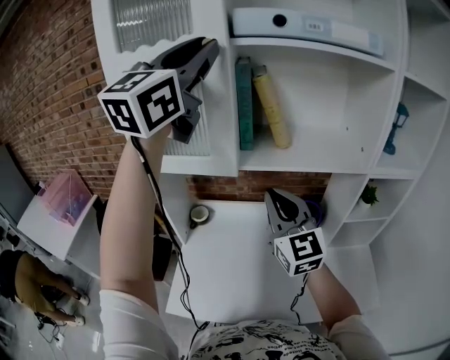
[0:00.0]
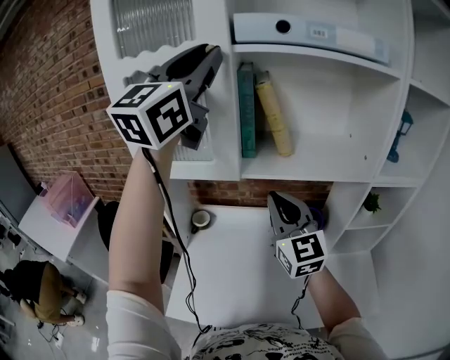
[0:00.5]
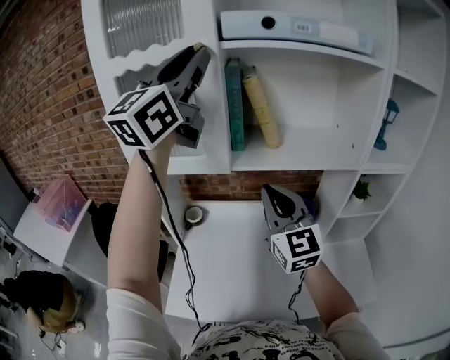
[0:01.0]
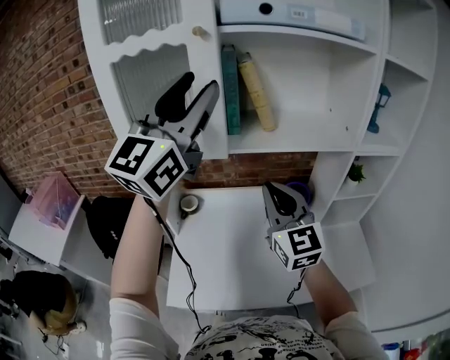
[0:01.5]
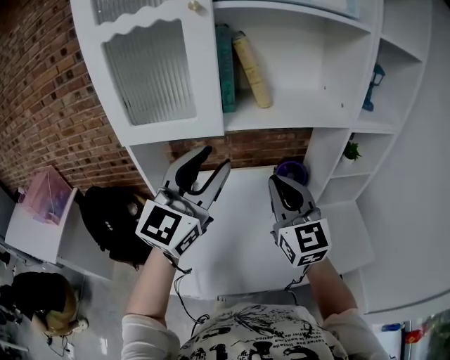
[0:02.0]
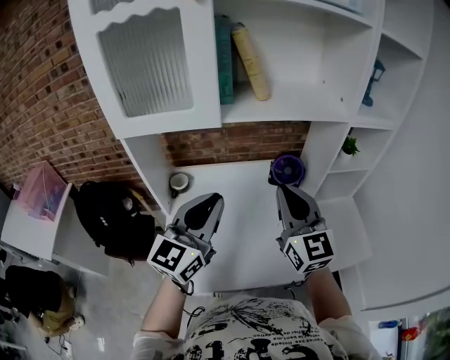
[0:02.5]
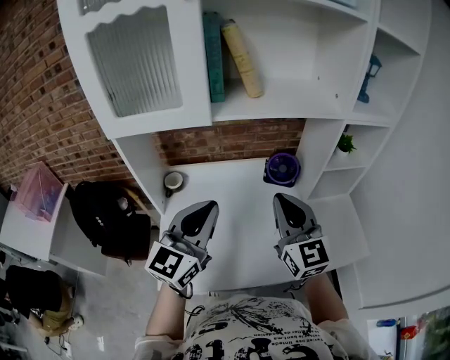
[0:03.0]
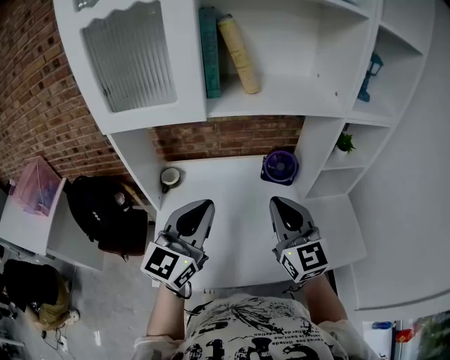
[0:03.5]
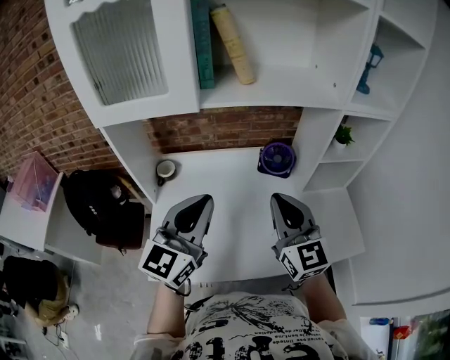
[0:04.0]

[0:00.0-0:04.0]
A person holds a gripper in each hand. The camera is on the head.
0.0 to 2.0 s: The left gripper shifts approximately 30 cm downward. The right gripper travels backward by approximately 5 cm.
2.0 to 4.0 s: The right gripper is displaced downward and to the right by about 10 cm. Meanwhile the left gripper goes roughly 15 cm downward, and closes.

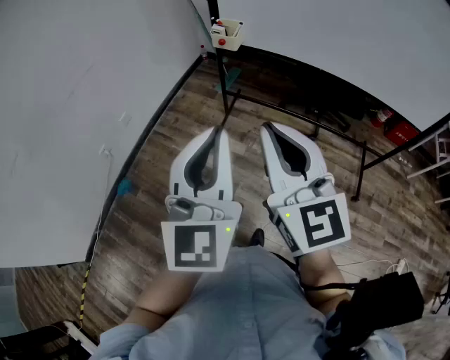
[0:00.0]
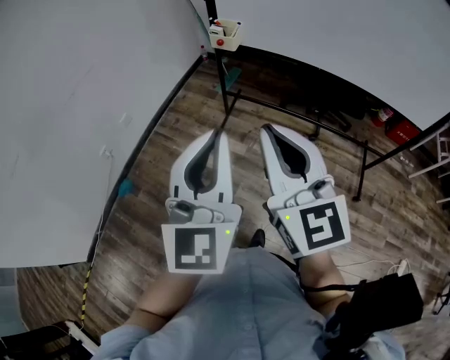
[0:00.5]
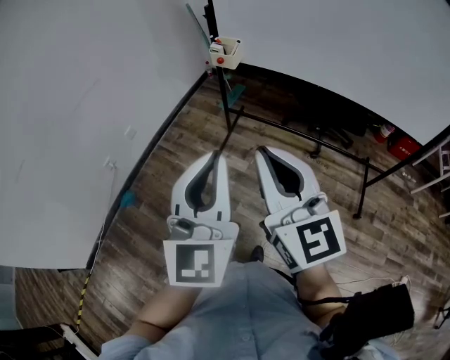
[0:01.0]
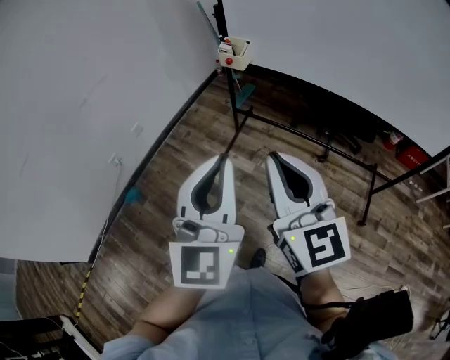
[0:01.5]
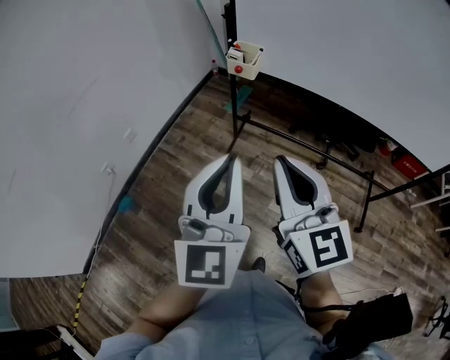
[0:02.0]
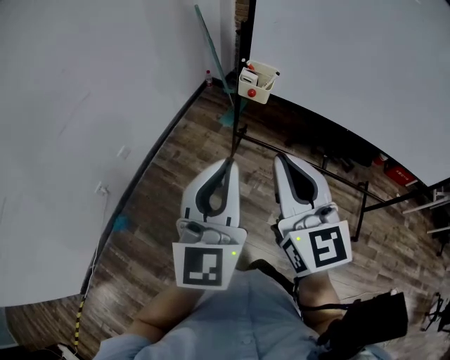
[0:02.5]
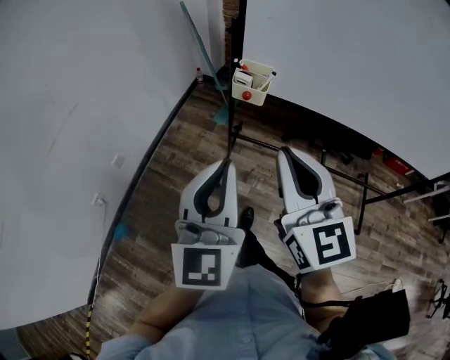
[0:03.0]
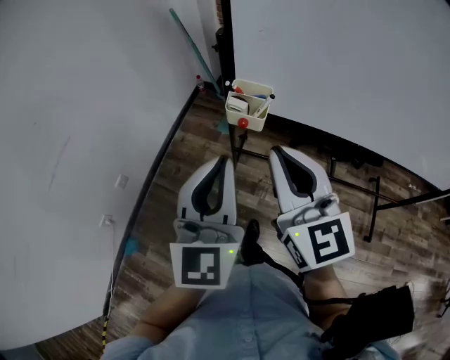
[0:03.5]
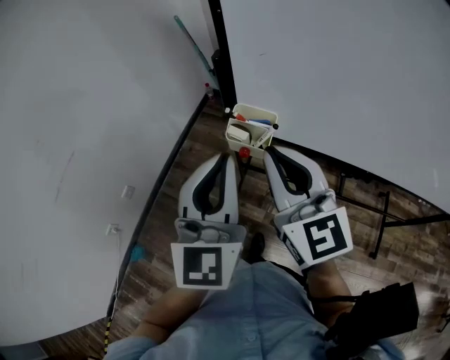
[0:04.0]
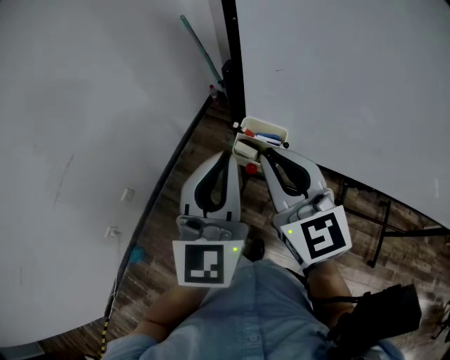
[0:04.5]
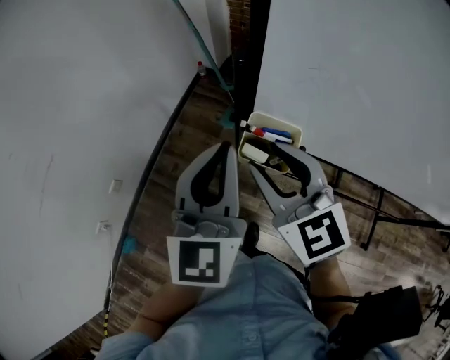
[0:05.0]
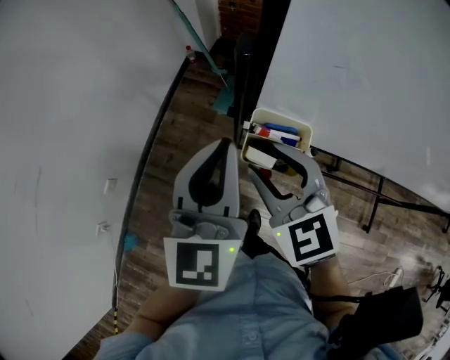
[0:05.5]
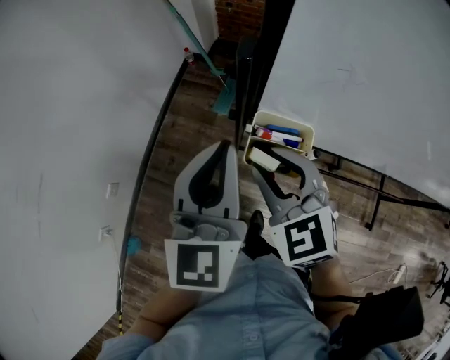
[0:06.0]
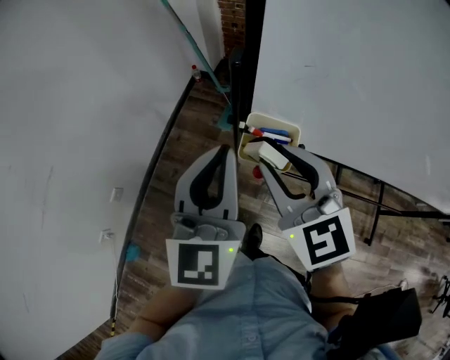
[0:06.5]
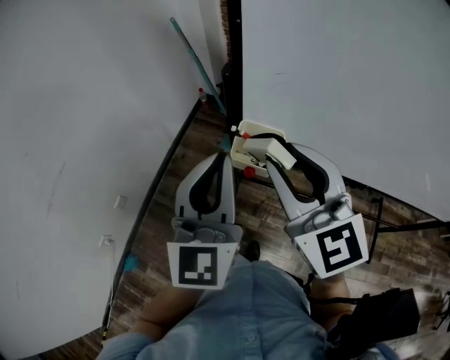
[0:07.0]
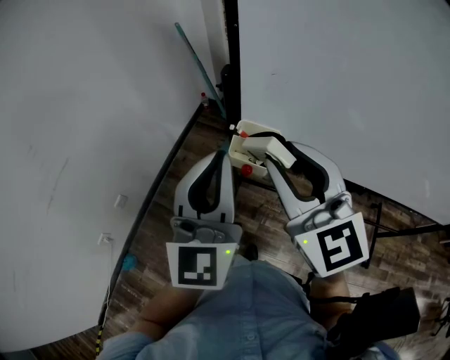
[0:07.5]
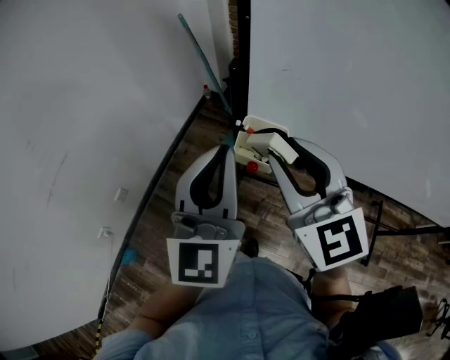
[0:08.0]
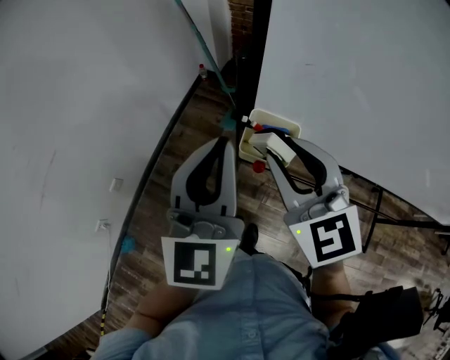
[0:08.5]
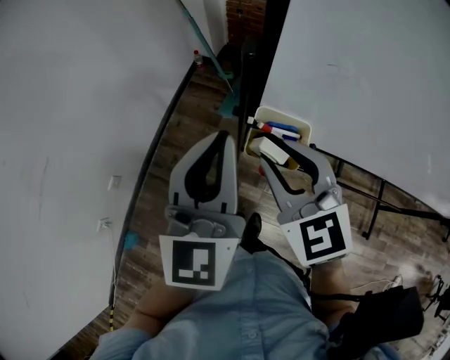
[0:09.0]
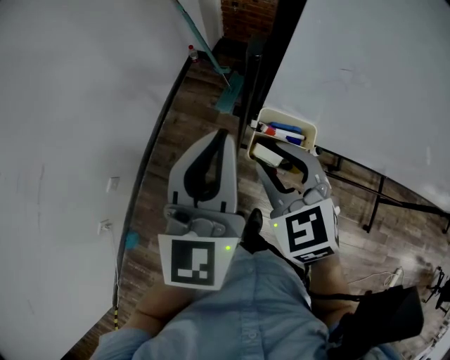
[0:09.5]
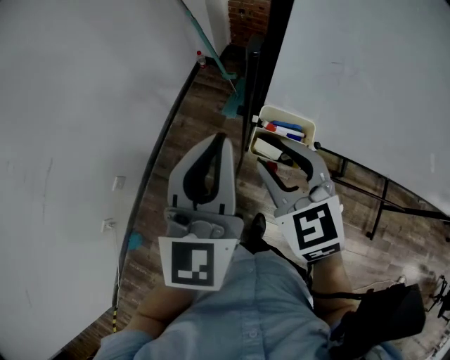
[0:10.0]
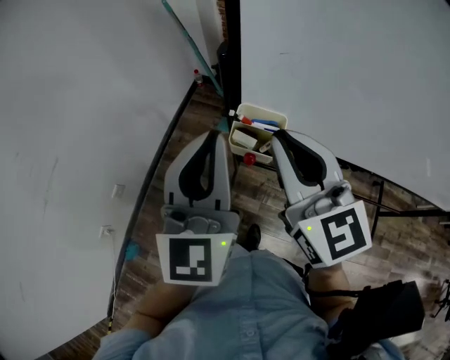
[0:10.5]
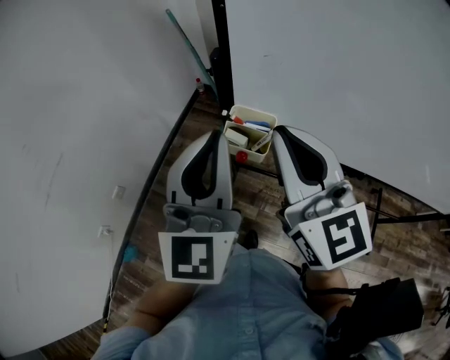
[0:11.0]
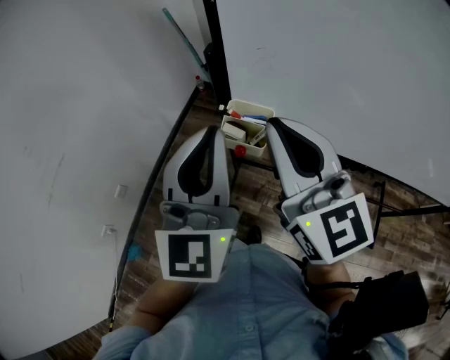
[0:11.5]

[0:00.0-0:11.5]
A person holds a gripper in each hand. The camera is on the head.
0.0 to 2.0 s: Both grippers move forward, roughly 10 cm.
2.0 to 4.0 s: Both grippers move forward, some 35 cm.
4.0 to 6.0 s: The right gripper is displaced downward and forward by some 20 cm, points its fingers approximately 30 degrees further downward, and opens; the left gripper heads forward and downward, covering approximately 15 cm.
6.0 to 7.5 s: The right gripper heads upward and backward, covering roughly 20 cm, and swivels approximately 30 degrees, while the left gripper is displaced backward and upward by about 15 cm.
7.5 to 9.5 s: The right gripper shifts about 20 cm downward and forward, and angles its fingers downward, by roughly 30 degrees. The left gripper goes some 15 cm forward and downward.
9.5 to 11.5 s: The left gripper is displaced backward and upward by about 15 cm. The right gripper goes some 20 cm upward and backward, angles its fingers upward, by some 40 degrees, and closes.

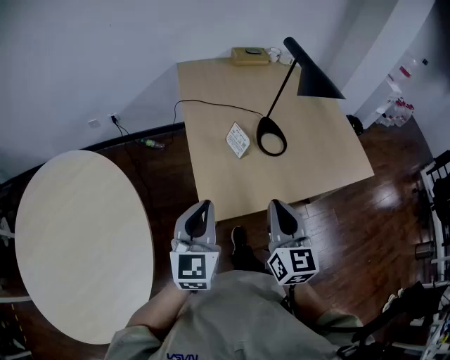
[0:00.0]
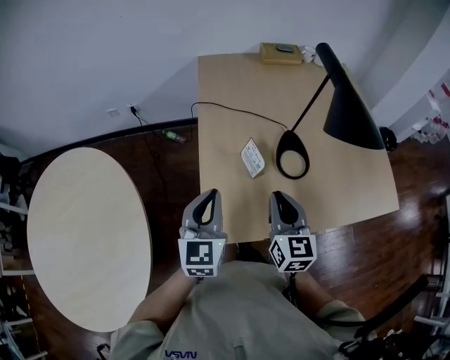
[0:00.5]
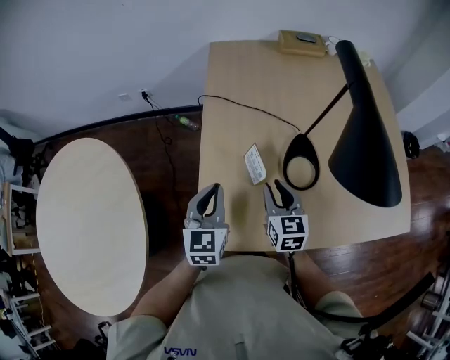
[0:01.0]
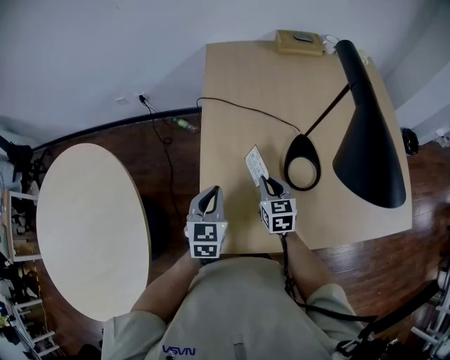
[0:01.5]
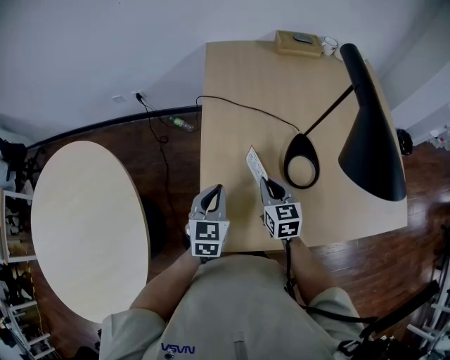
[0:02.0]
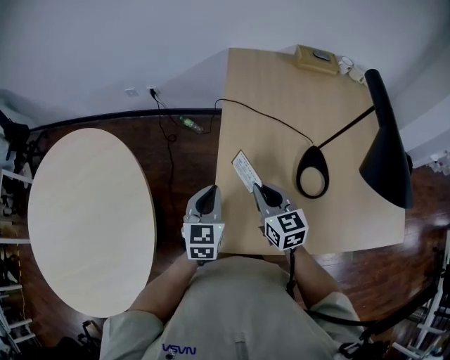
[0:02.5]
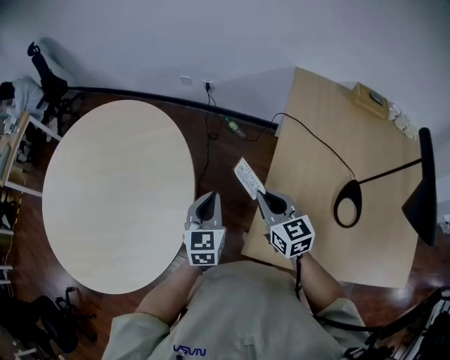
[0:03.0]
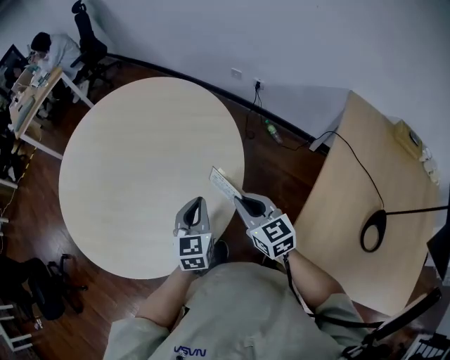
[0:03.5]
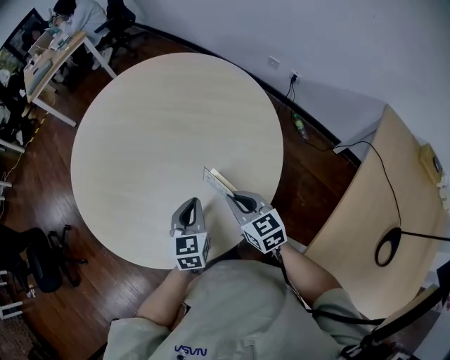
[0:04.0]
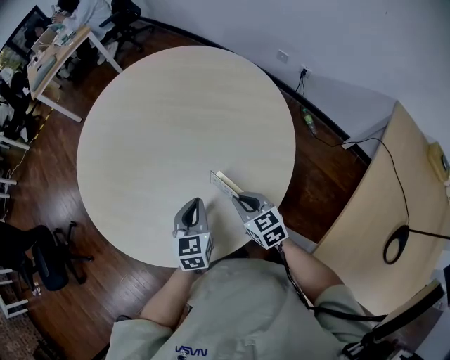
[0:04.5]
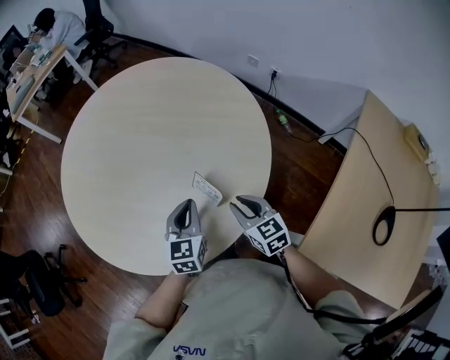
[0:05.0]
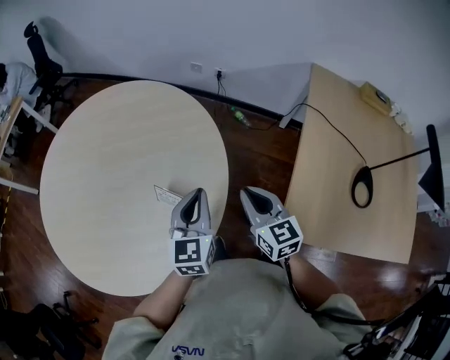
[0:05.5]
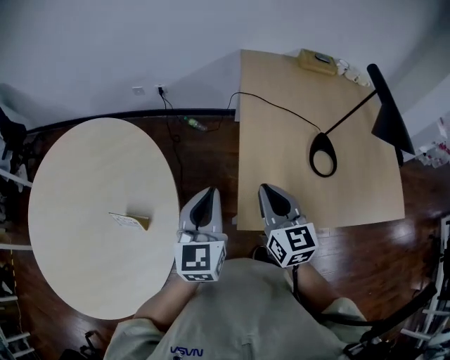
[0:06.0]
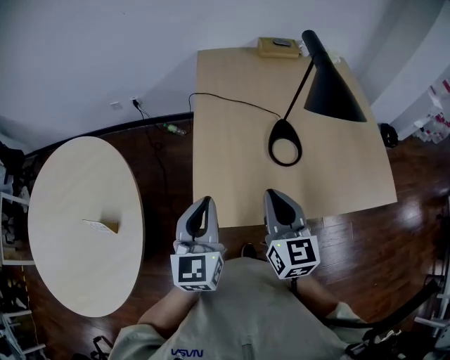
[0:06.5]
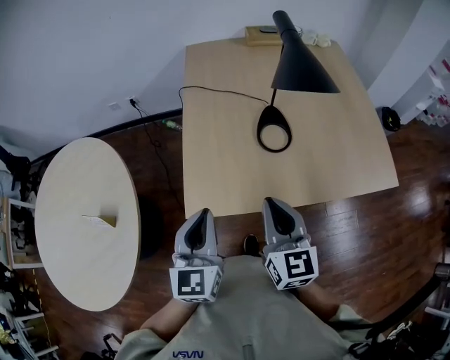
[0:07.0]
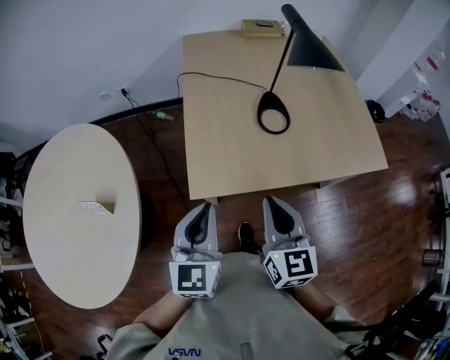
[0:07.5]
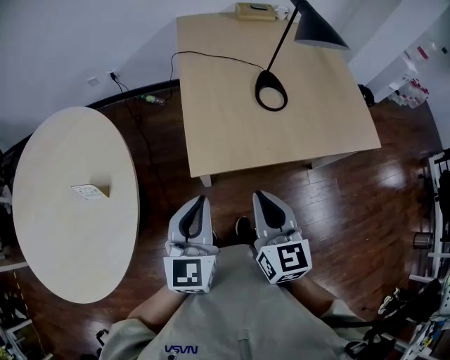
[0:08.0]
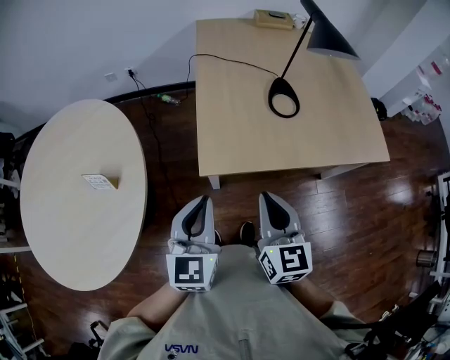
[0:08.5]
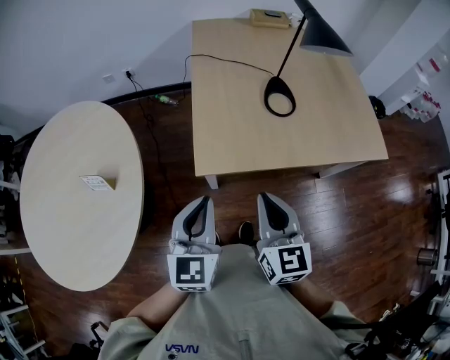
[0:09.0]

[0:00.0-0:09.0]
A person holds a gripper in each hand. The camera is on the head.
0.0 to 2.0 s: Both grippers move forward and downward, roughly 30 cm. The right gripper changes its angle by about 30 degrees, and opens, then closes again. The left gripper changes its angle by roughly 20 degrees.
2.0 to 4.5 s: Both grippers are carried approximately 60 cm. The right gripper changes its angle by some 70 degrees. Meanwhile the left gripper turns by about 60 degrees.
4.5 to 7.0 s: The two grippers travel together, about 60 cm. The right gripper turns by approximately 80 degrees; the left gripper swivels about 50 degrees.
7.0 to 9.0 s: The two grippers go approximately 15 cm backward and to the left.

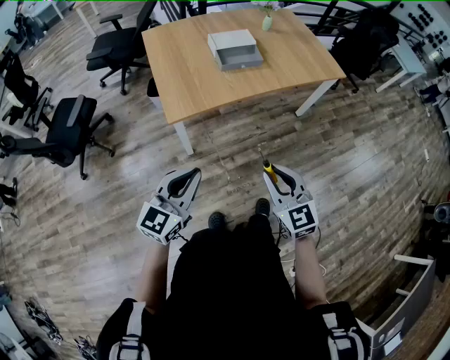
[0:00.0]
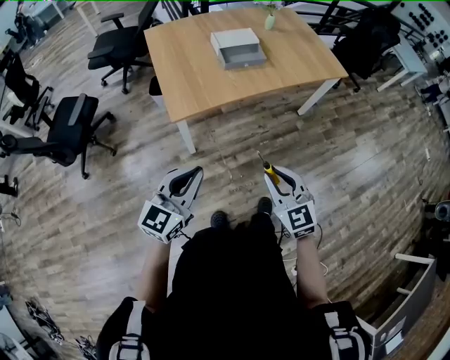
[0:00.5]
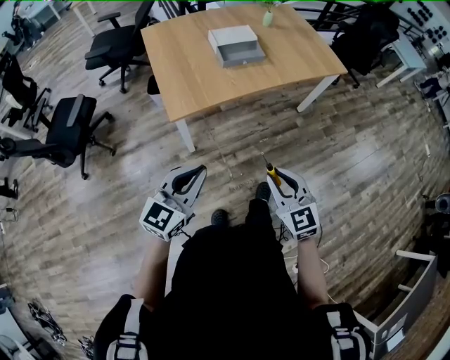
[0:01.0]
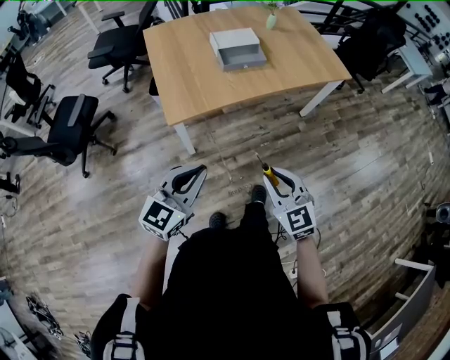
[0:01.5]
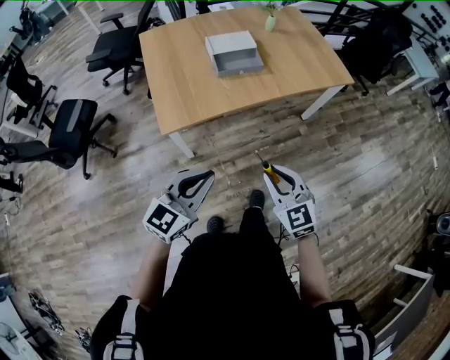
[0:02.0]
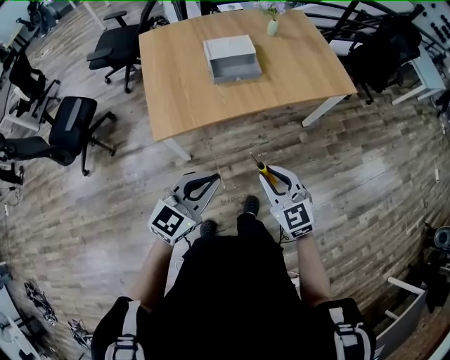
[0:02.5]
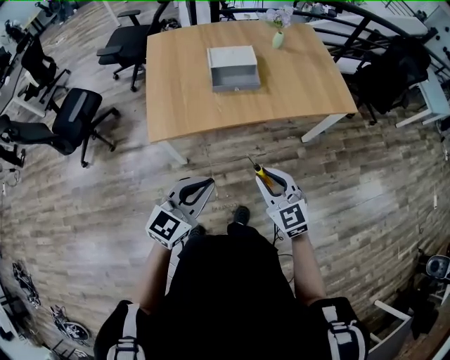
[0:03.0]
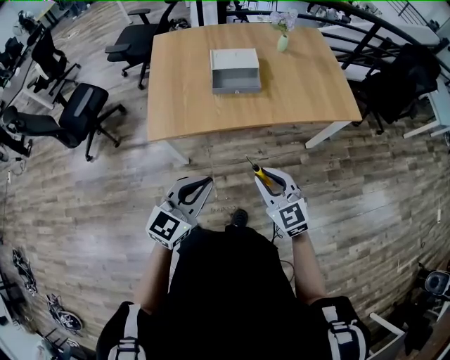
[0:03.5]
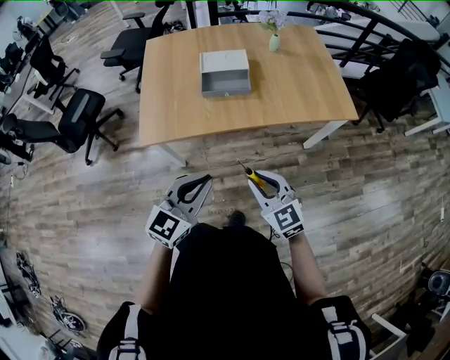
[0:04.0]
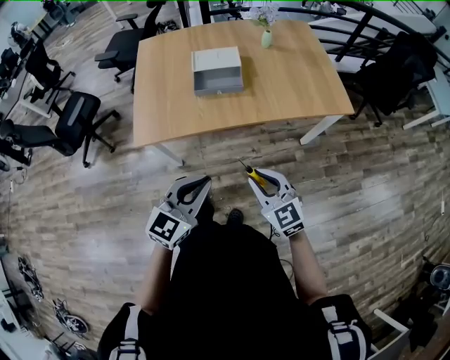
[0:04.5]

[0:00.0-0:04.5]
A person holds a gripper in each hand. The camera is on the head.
0.0 to 2.0 s: The left gripper shifts about 10 cm forward and to the right. The right gripper goes approximately 10 cm forward.
2.0 to 4.5 s: Both grippers move to the right and forward, about 20 cm.
